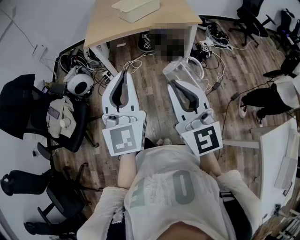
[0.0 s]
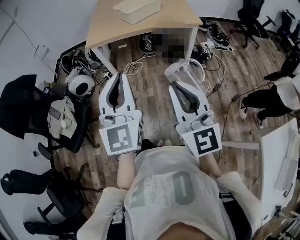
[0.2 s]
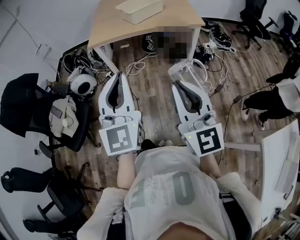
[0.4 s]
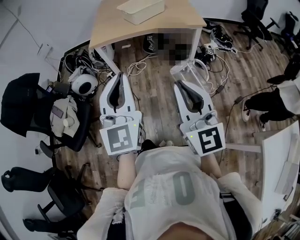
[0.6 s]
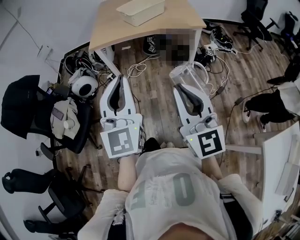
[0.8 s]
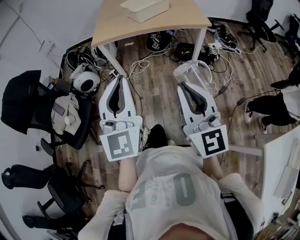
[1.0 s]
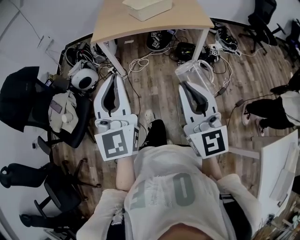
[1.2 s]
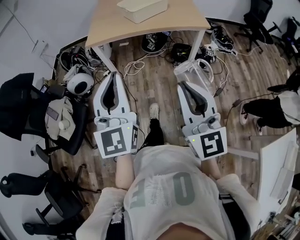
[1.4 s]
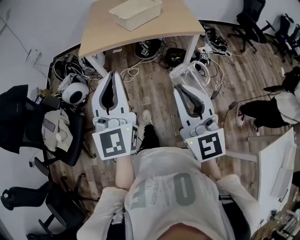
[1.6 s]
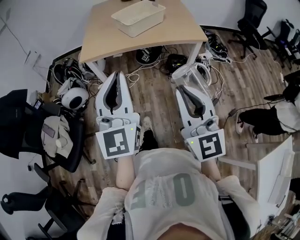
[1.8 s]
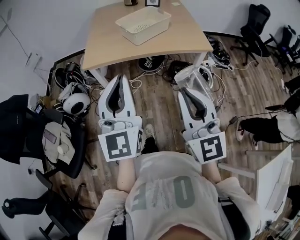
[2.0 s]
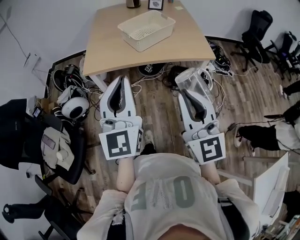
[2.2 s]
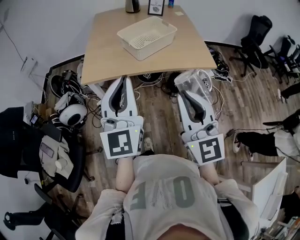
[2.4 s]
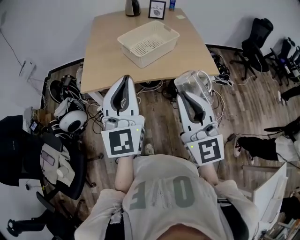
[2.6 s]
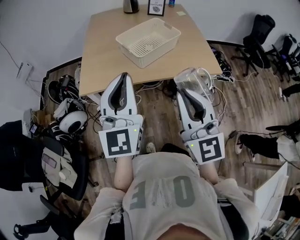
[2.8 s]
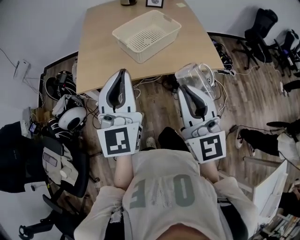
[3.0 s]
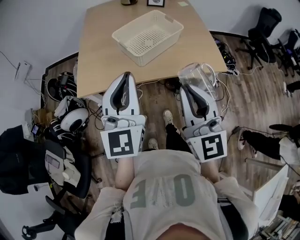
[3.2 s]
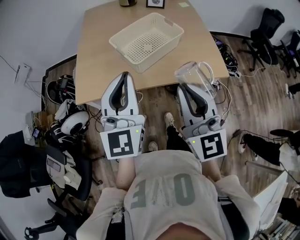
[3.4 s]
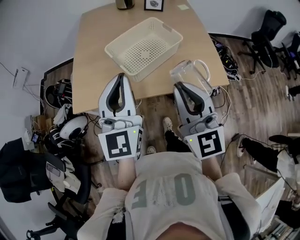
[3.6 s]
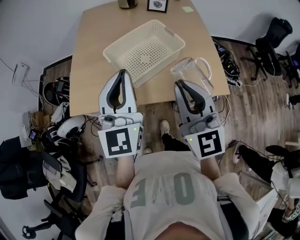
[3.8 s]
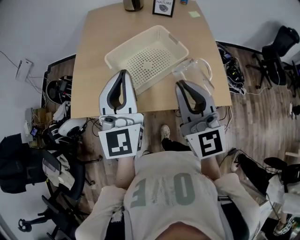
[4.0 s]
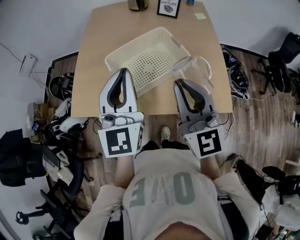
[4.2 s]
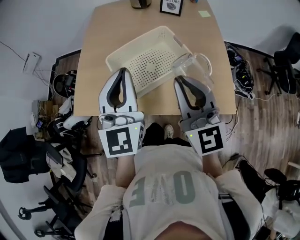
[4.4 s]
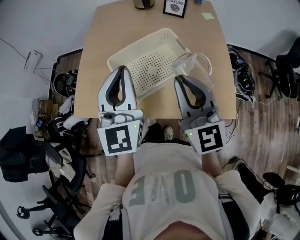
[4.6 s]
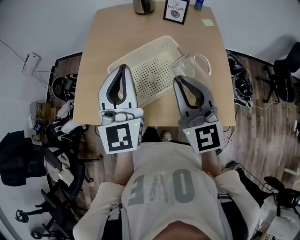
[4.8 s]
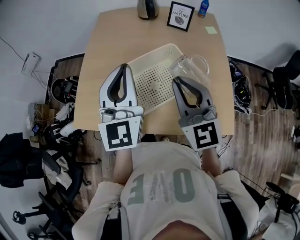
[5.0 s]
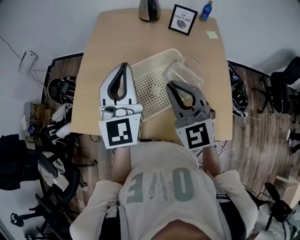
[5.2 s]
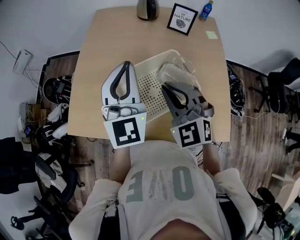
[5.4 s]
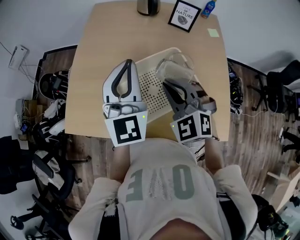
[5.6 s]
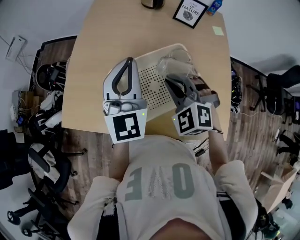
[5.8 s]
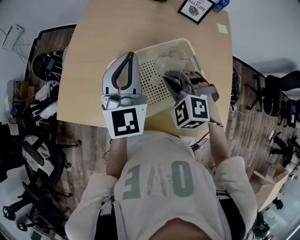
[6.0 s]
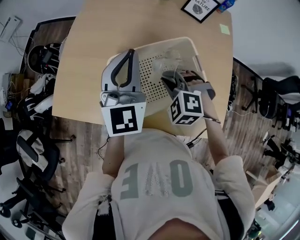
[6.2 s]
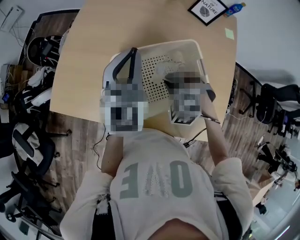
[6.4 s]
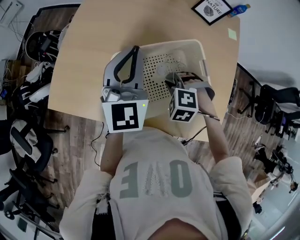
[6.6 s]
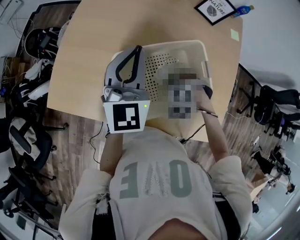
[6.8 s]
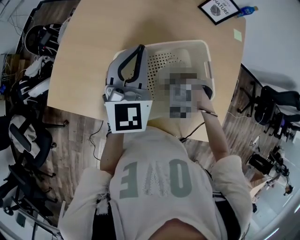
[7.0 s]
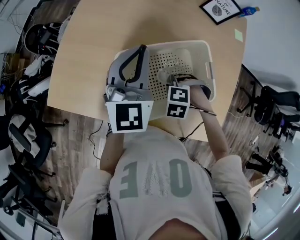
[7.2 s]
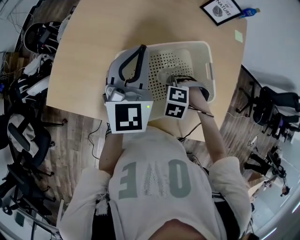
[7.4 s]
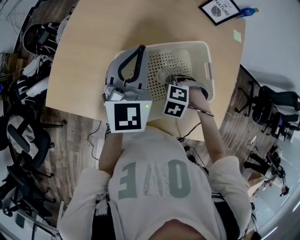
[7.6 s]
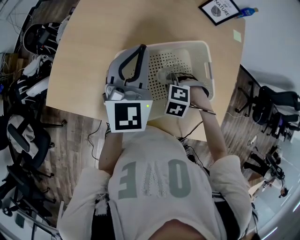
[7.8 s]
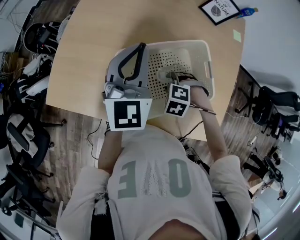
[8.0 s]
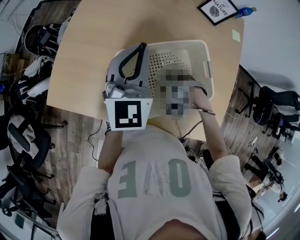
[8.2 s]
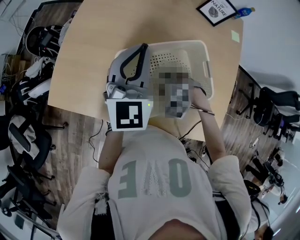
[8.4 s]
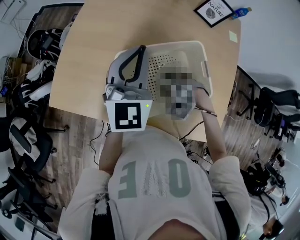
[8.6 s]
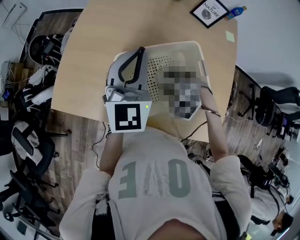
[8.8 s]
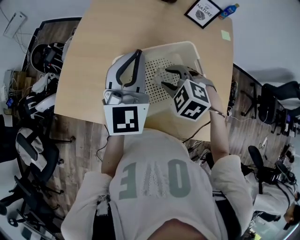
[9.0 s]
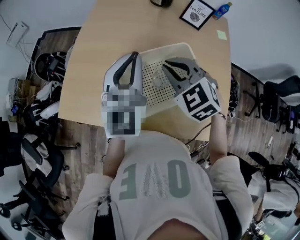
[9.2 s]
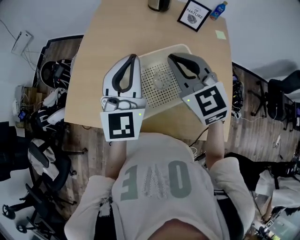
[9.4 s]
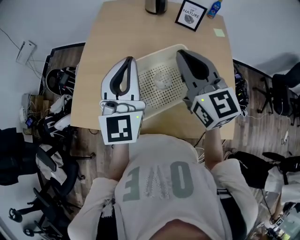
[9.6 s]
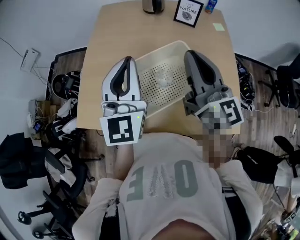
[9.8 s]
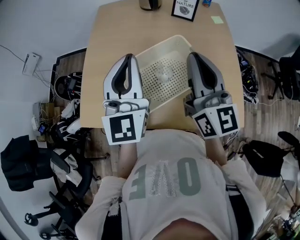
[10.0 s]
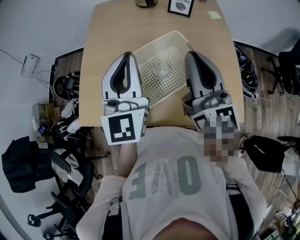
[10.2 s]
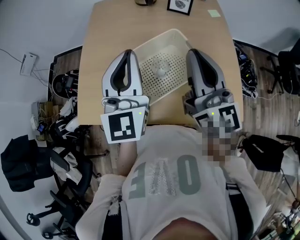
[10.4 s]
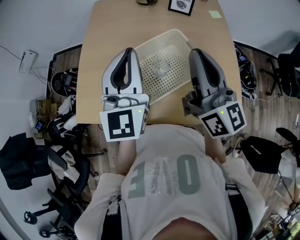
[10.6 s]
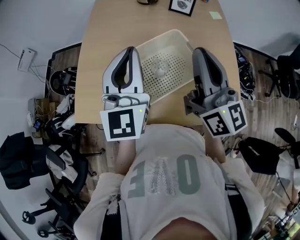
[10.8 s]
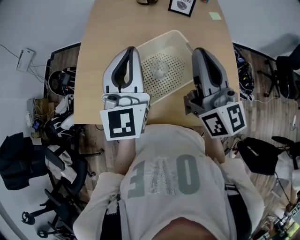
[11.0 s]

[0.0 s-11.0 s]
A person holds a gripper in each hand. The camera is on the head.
0.0 to 1.6 s: Both grippers travel together forward, approximately 10 cm.
1.6 to 3.2 s: Both grippers travel together forward, about 40 cm.
3.2 to 4.8 s: Both grippers move forward, about 30 cm.
4.8 to 6.2 s: The right gripper shifts some 25 cm downward and forward, and points its fingers approximately 60 degrees further downward. The left gripper moves forward and downward, approximately 20 cm.
6.2 to 7.8 s: The right gripper is displaced downward by some 10 cm, and rotates about 30 degrees. The left gripper ends up some 5 cm from where it was.
7.8 to 9.4 s: The left gripper shifts some 10 cm upward, while the right gripper shifts about 30 cm upward, tips its fingers upward by approximately 60 degrees, and closes.
9.4 to 11.0 s: The left gripper ends up roughly 5 cm from where it was. Meanwhile the right gripper travels to the right, backward and upward by some 15 cm, and tilts its fingers some 30 degrees upward.

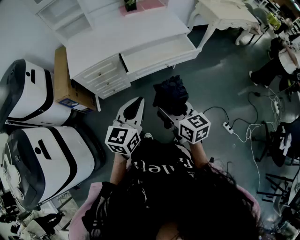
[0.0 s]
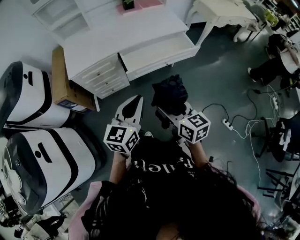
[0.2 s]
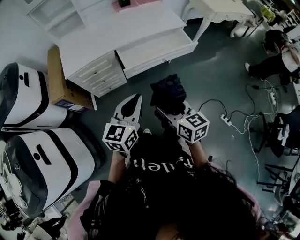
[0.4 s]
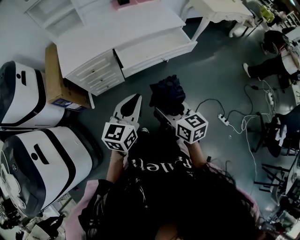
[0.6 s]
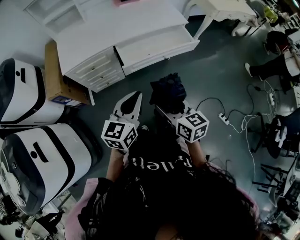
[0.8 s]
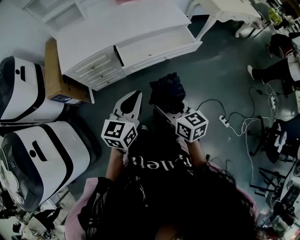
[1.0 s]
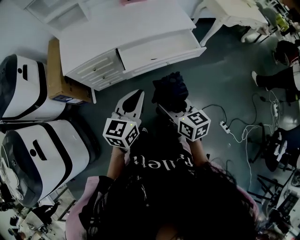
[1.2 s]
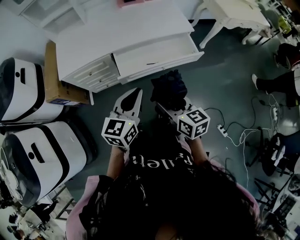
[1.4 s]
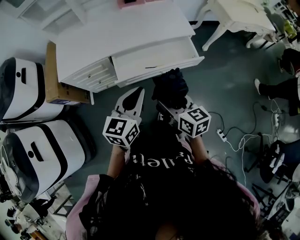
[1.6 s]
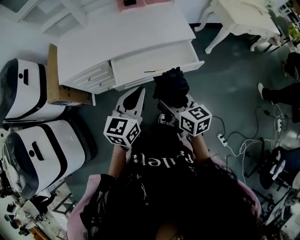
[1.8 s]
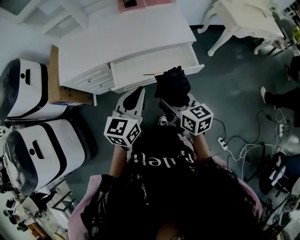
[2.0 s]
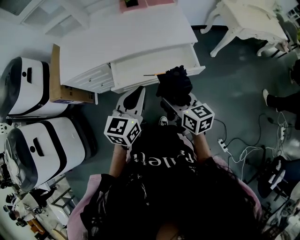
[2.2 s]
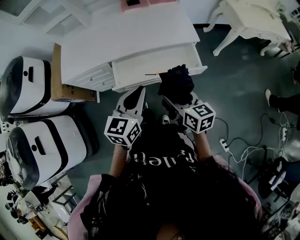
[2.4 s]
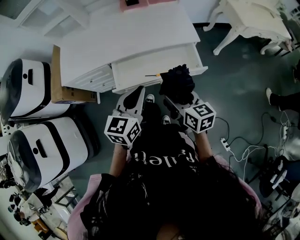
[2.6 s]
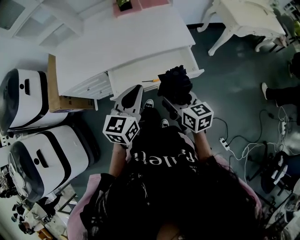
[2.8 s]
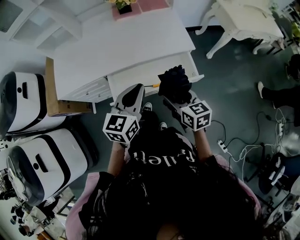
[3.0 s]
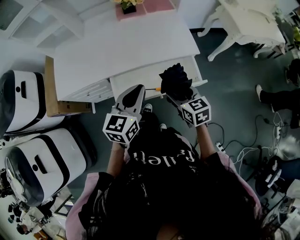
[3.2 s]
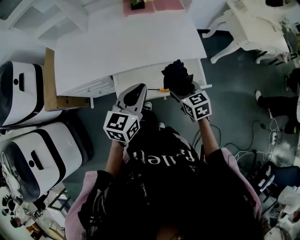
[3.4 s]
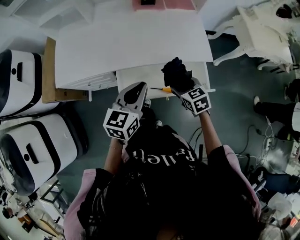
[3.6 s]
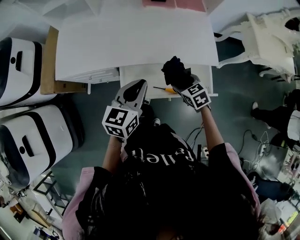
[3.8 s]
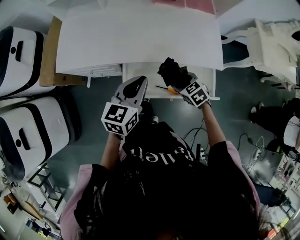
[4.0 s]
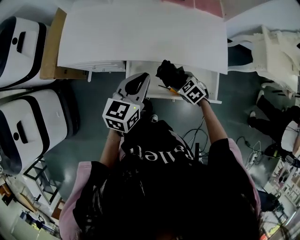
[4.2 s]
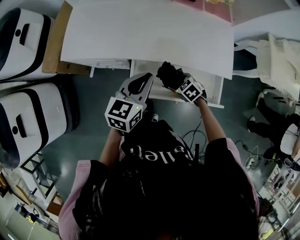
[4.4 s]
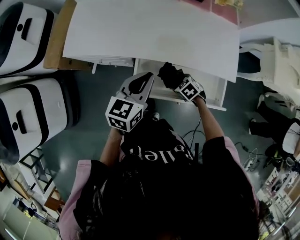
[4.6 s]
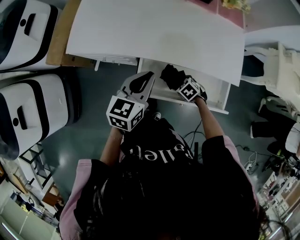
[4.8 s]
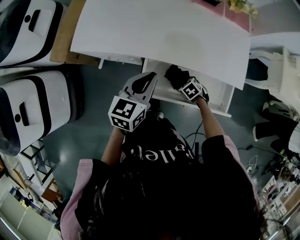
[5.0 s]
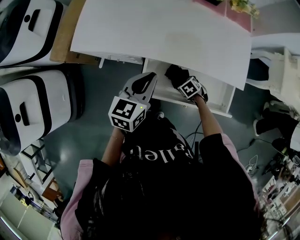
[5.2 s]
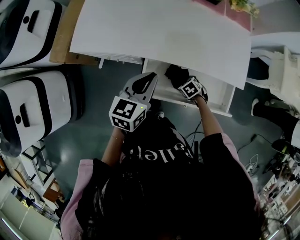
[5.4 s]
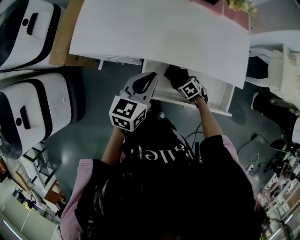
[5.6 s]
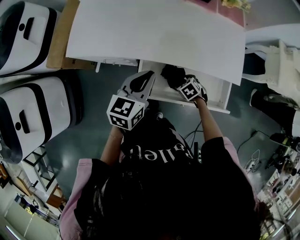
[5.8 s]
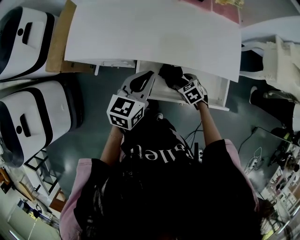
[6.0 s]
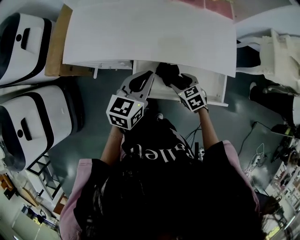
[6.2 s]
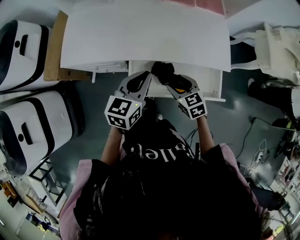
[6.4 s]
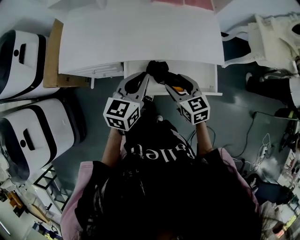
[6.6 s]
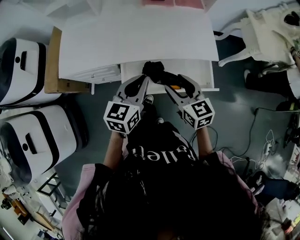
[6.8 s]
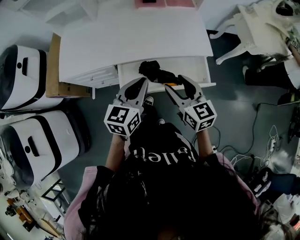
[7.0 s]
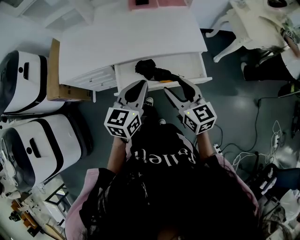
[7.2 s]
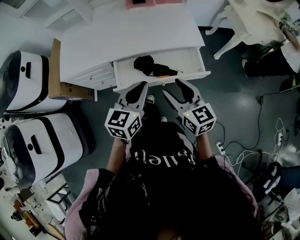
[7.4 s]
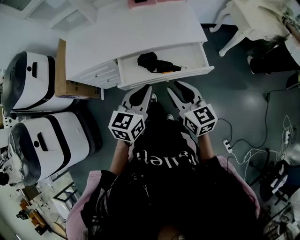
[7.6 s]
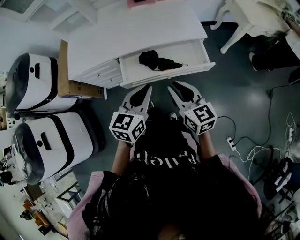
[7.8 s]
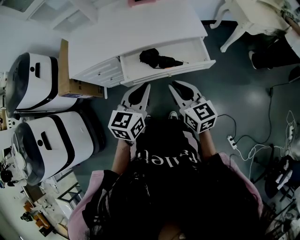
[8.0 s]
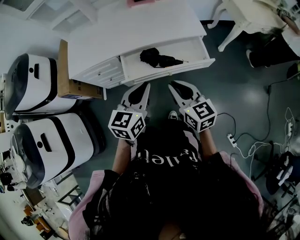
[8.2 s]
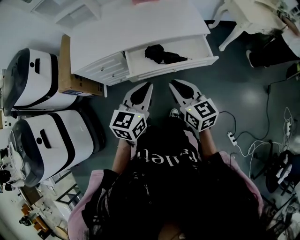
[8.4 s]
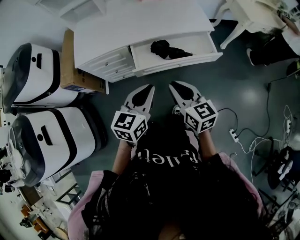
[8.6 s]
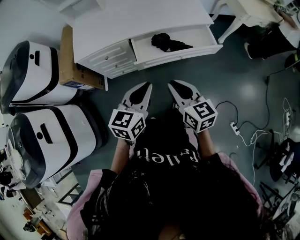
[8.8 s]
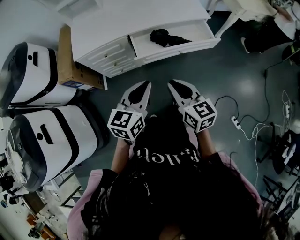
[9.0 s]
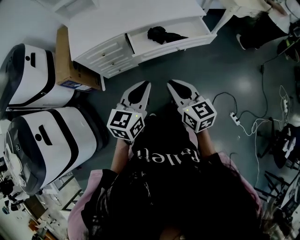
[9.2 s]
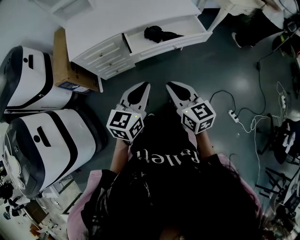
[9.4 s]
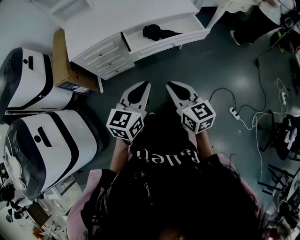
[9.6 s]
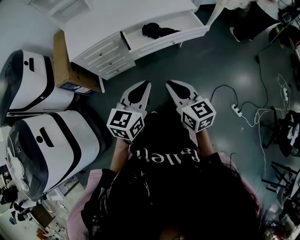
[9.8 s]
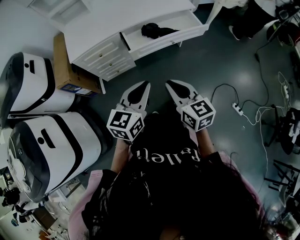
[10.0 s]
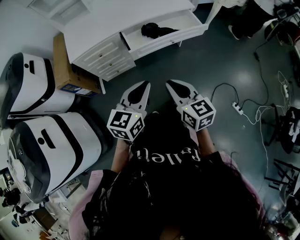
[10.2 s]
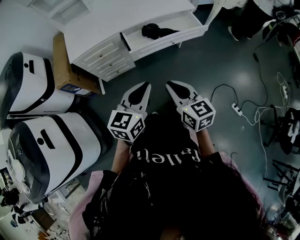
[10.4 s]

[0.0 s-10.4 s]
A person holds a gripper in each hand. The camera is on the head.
0.0 to 1.4 s: The grippers both shift forward and to the right by roughly 15 cm.
1.4 to 3.0 s: The two grippers go roughly 20 cm forward and to the right.
3.0 to 4.4 s: The right gripper is displaced downward by some 25 cm, and angles its fingers downward, by some 40 degrees, while the left gripper changes place by roughly 20 cm.
4.4 to 6.0 s: The right gripper moves some 10 cm downward and comes back.
6.0 to 7.4 s: The left gripper is displaced backward, to the right and upward by approximately 25 cm. The right gripper shifts approximately 35 cm upward and backward, and angles its fingers upward, by some 50 degrees.
7.4 to 9.0 s: Both grippers move backward and to the left, about 25 cm. The right gripper closes.
9.0 to 10.4 s: Both grippers travel together backward, roughly 10 cm.

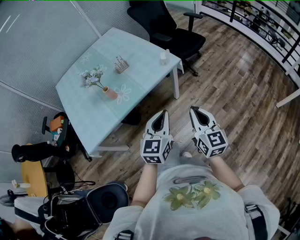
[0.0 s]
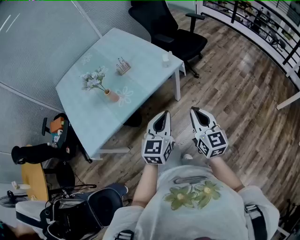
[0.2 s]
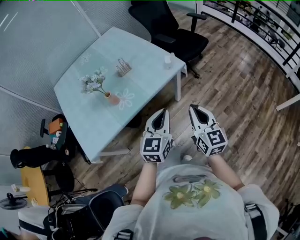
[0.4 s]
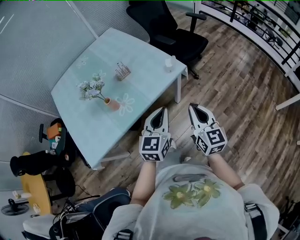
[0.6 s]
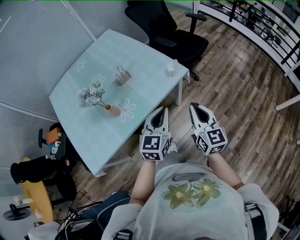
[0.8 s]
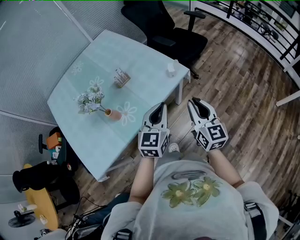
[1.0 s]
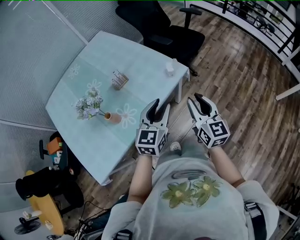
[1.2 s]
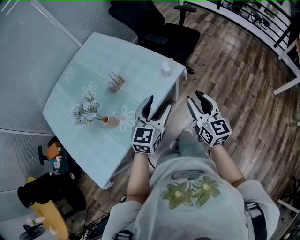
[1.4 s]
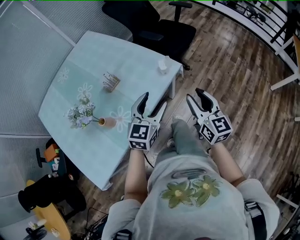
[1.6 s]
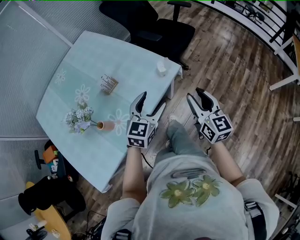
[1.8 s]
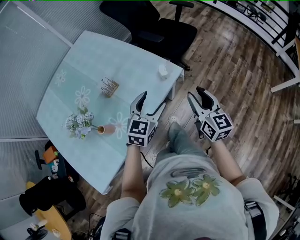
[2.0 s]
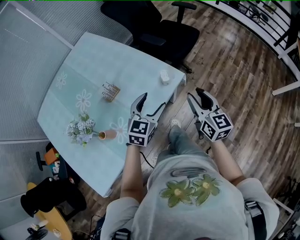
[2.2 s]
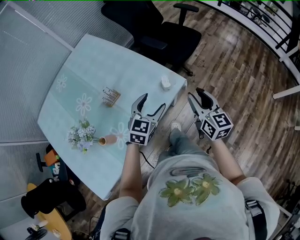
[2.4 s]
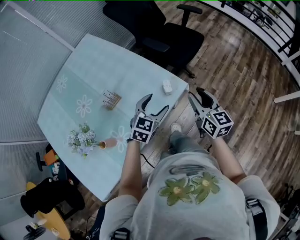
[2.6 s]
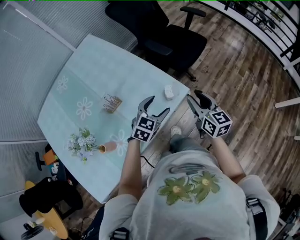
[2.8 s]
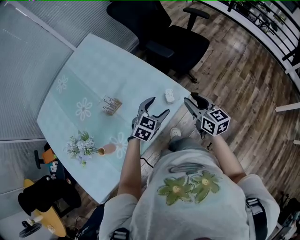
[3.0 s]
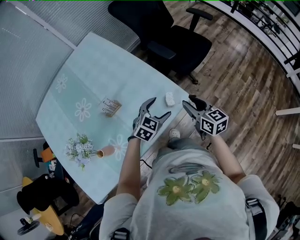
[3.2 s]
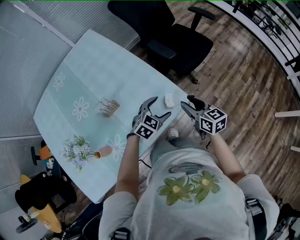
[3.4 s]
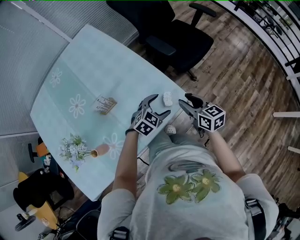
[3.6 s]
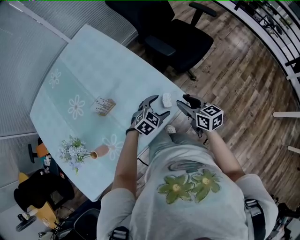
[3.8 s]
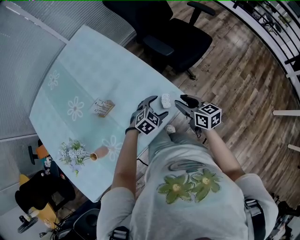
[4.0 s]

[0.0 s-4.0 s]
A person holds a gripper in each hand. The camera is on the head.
0.0 to 1.4 s: Both grippers move forward, about 25 cm. The left gripper opens its fingers. The right gripper opens up.
1.4 to 2.6 s: The left gripper goes roughly 20 cm forward and downward. The right gripper moves forward, roughly 20 cm.
2.6 to 4.0 s: The grippers both shift downward and forward by roughly 15 cm. The right gripper swivels roughly 30 degrees, while the left gripper turns by approximately 20 degrees.
